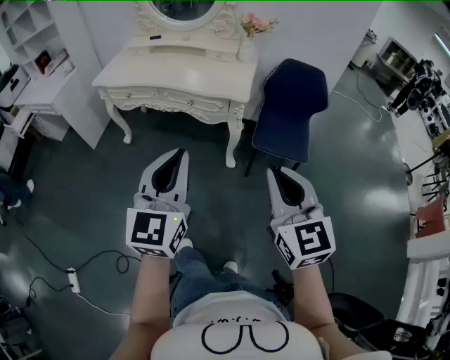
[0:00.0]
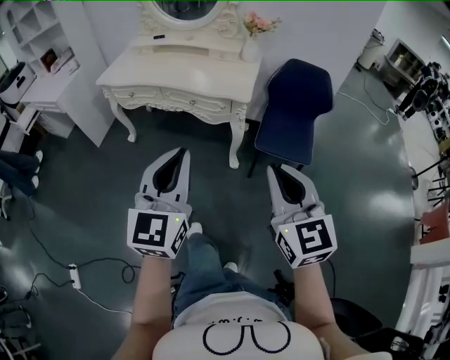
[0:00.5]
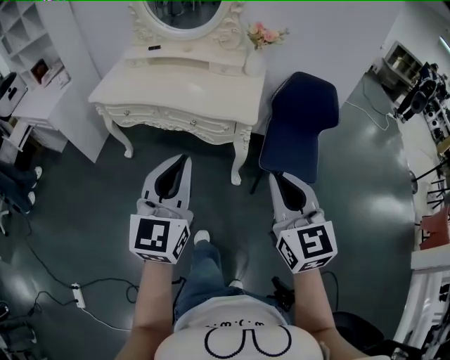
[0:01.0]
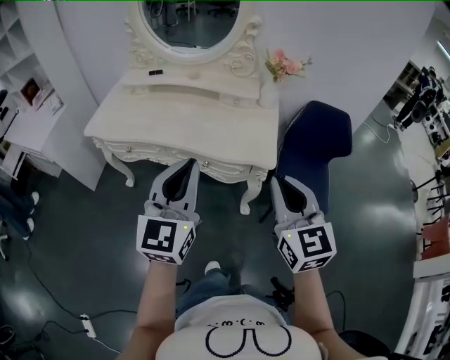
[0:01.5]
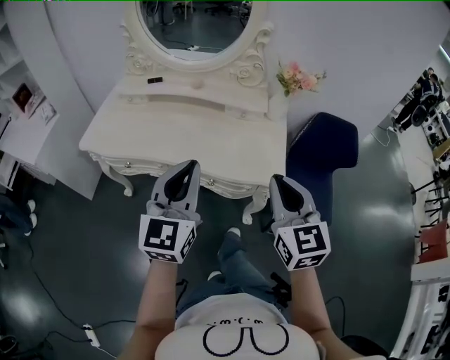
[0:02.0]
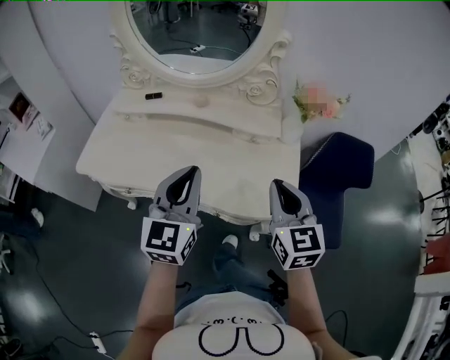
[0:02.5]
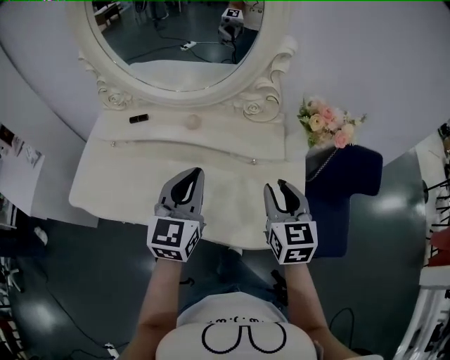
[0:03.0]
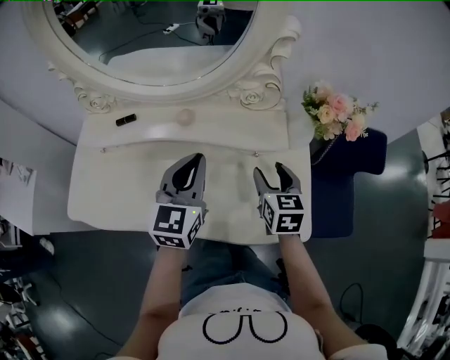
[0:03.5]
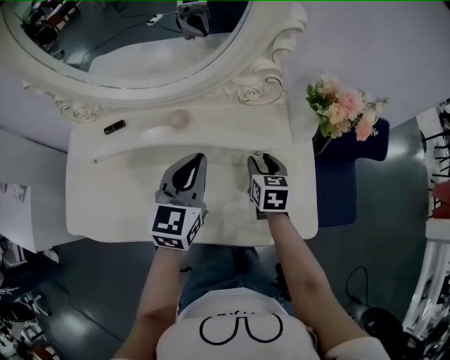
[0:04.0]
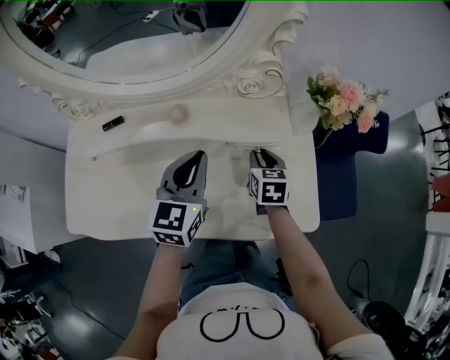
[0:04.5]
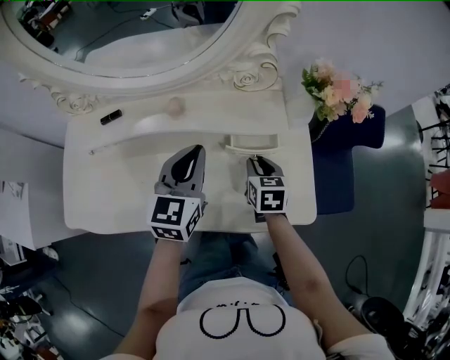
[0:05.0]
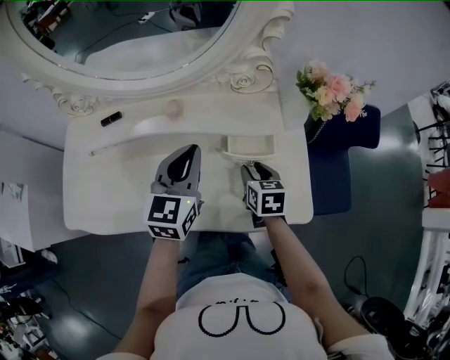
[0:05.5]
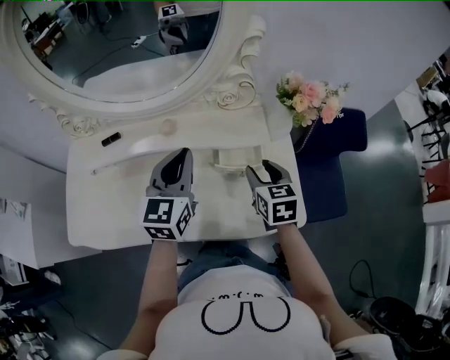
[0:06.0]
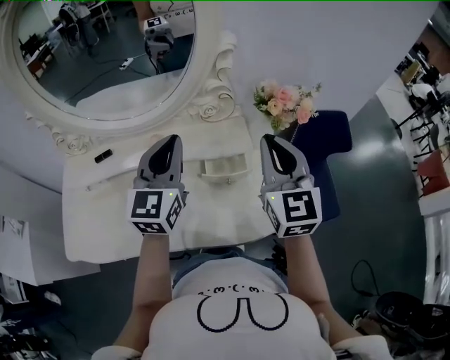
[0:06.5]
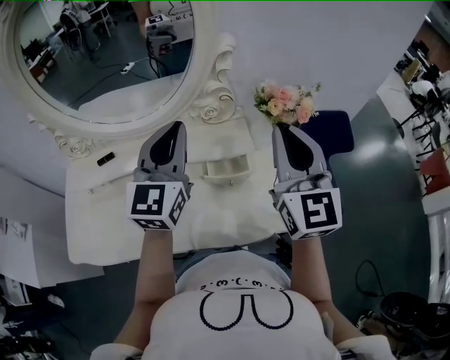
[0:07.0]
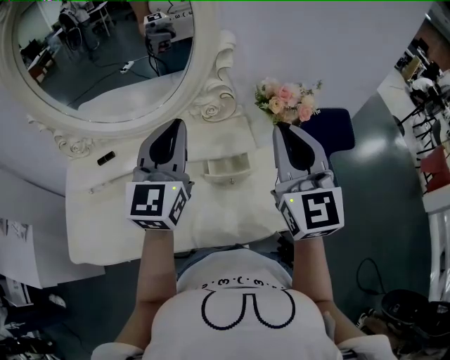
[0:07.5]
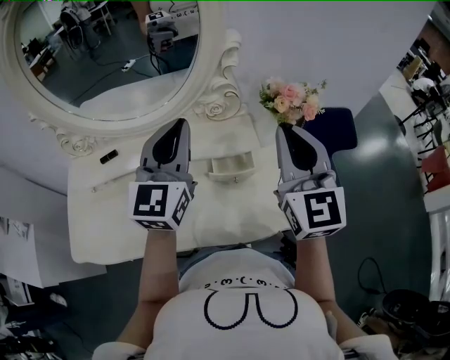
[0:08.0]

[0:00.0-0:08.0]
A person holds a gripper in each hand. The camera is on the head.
0:00.0 to 0:02.0: The two grippers travel together, forward, roughly 40 cm.
0:02.0 to 0:04.0: The right gripper moves forward and downward, some 50 cm, changes its angle by approximately 40 degrees, and opens; the left gripper heads forward, covering roughly 40 cm, and swivels approximately 20 degrees.
0:04.0 to 0:06.0: The right gripper moves upward and backward, about 10 cm.
0:06.0 to 0:08.0: The left gripper heads upward, covering roughly 15 cm. The right gripper shifts roughly 25 cm upward, points its fingers approximately 40 degrees further upward, and closes.

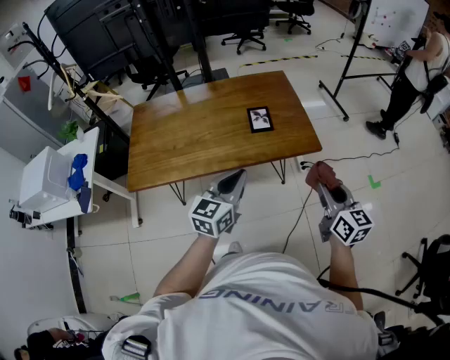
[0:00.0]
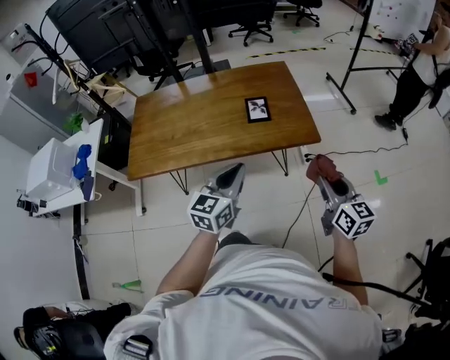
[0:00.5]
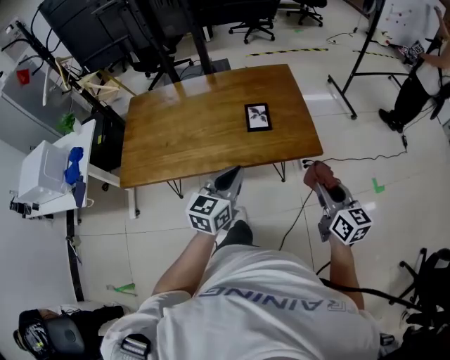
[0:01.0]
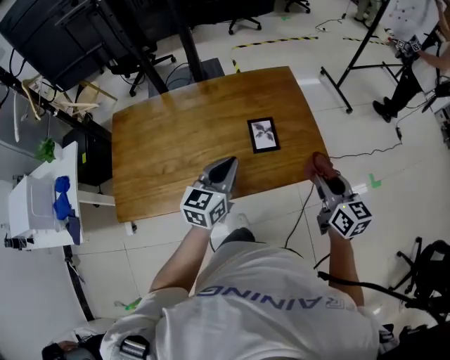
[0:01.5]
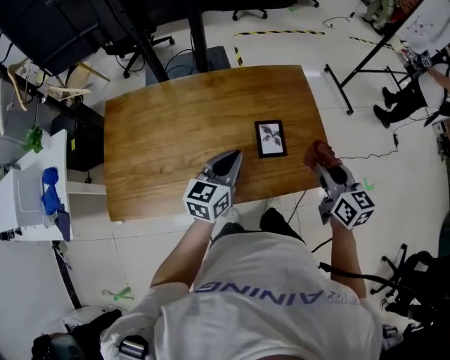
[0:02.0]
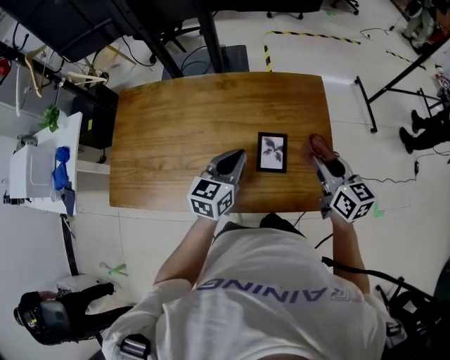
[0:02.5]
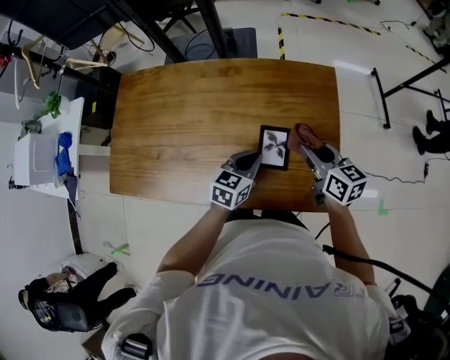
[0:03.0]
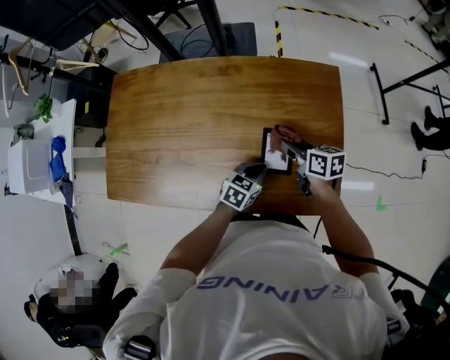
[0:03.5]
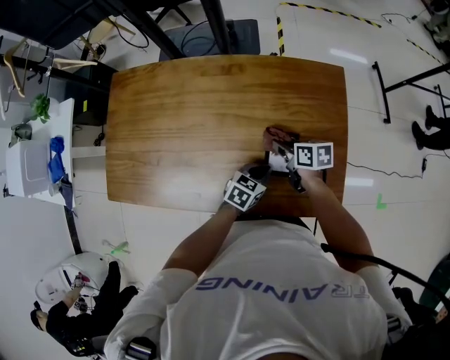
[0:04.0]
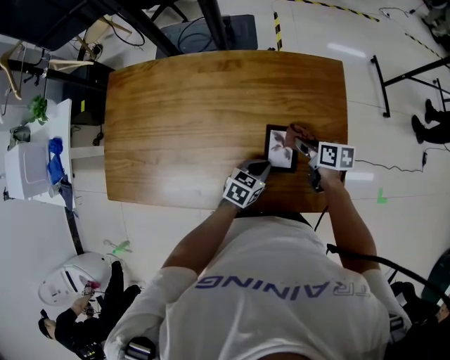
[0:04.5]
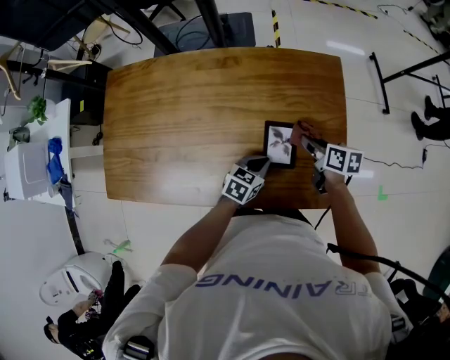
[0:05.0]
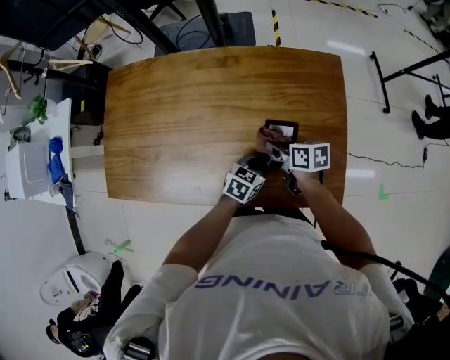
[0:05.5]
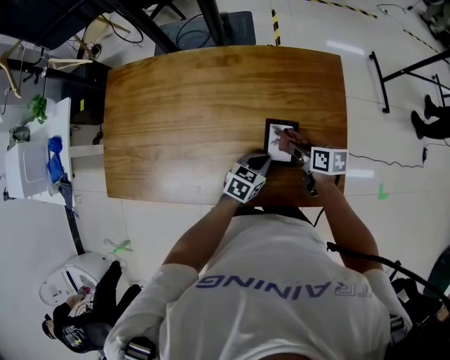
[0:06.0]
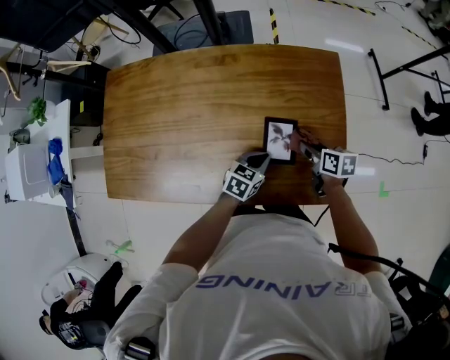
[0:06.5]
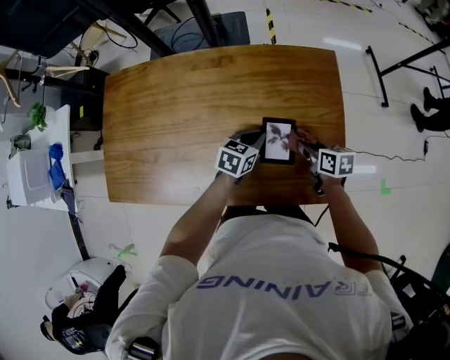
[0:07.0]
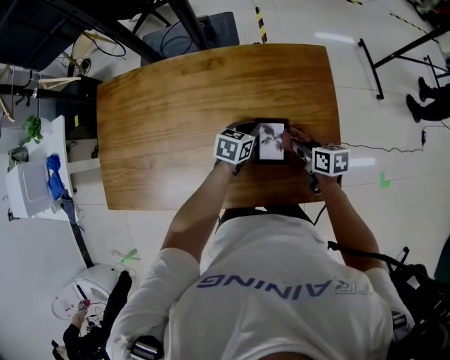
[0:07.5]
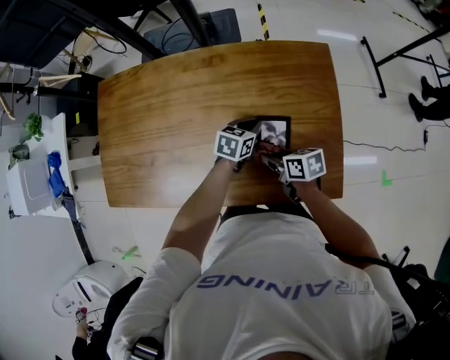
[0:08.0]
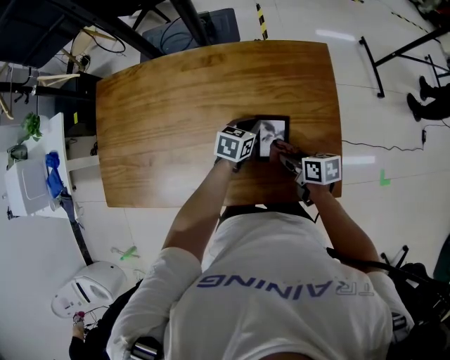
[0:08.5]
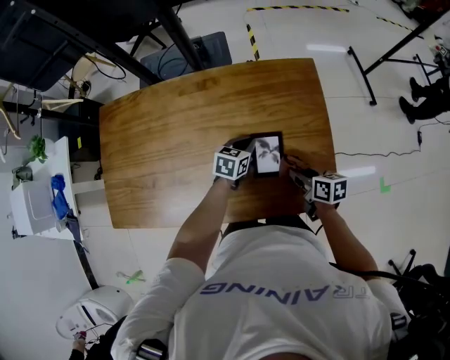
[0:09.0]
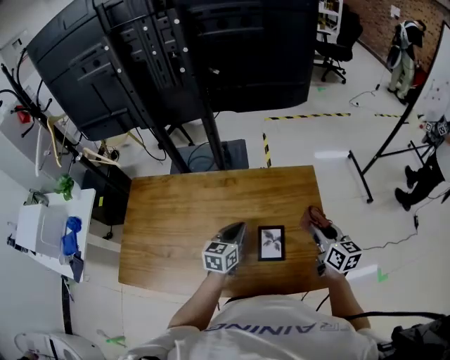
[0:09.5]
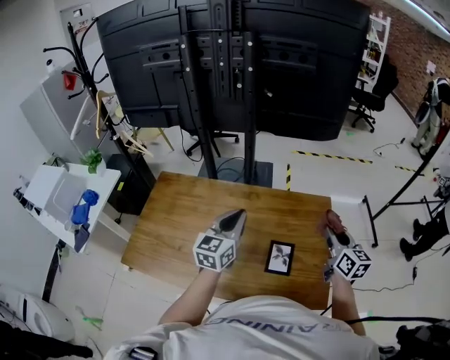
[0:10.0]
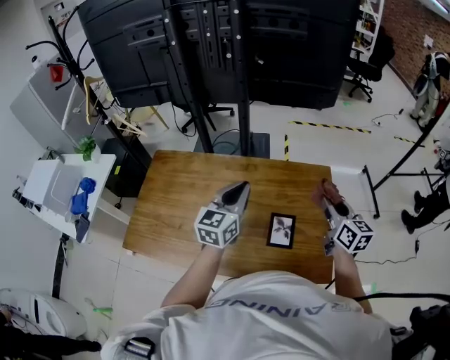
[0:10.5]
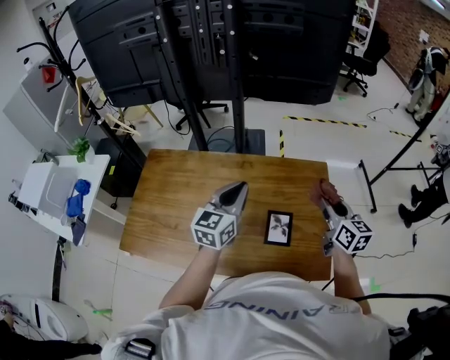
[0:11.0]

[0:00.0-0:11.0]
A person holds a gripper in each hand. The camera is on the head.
0:00.0 to 0:02.0: Both grippers travel together forward, approximately 25 cm.
0:02.0 to 0:03.5: The left gripper is displaced downward and to the right by roughly 20 cm, and changes its angle by roughly 30 degrees, while the right gripper shifts roughly 25 cm forward and downward, and changes its angle by about 40 degrees.
0:03.5 to 0:05.5: The right gripper goes some 5 cm to the left.
0:05.5 to 0:07.5: The right gripper moves to the right, some 10 cm. Meanwhile the left gripper moves forward, some 10 cm.
0:07.5 to 0:09.0: The right gripper heads backward, covering roughly 5 cm, and goes to the left and returns, about 10 cm each way.
0:09.0 to 0:11.0: The left gripper moves upward, roughly 30 cm, and tilts its fingers approximately 30 degrees upward, while the right gripper heads upward and forward, covering approximately 25 cm, and turns by approximately 40 degrees.

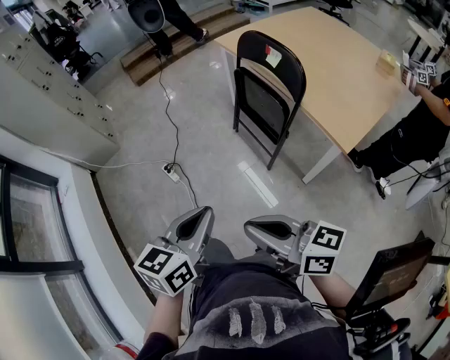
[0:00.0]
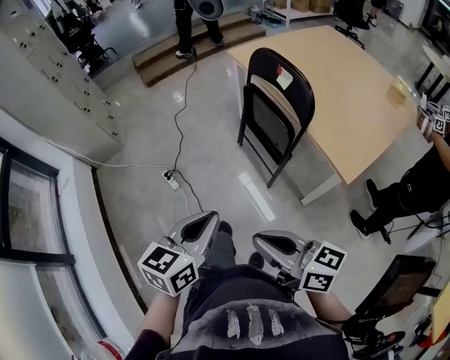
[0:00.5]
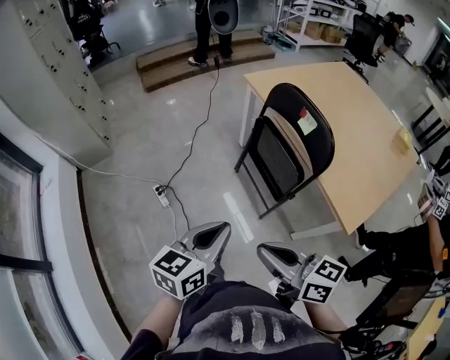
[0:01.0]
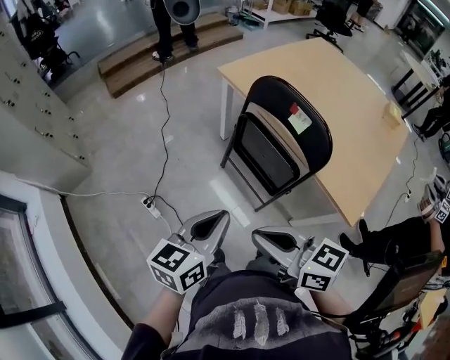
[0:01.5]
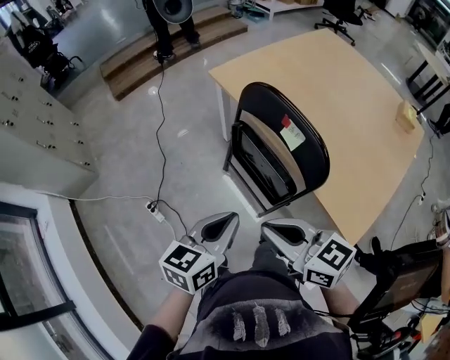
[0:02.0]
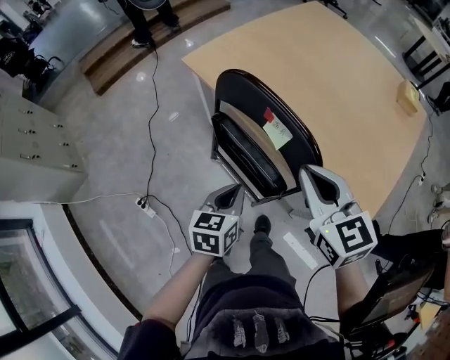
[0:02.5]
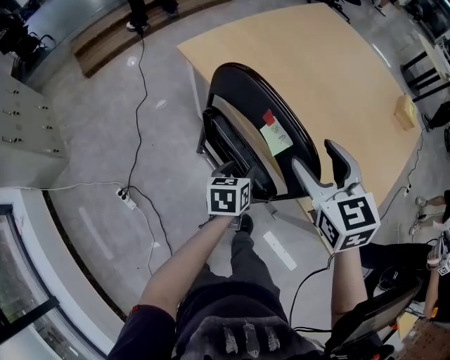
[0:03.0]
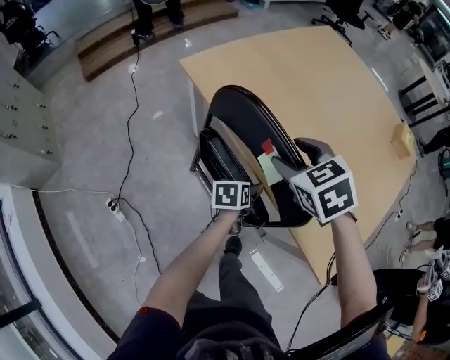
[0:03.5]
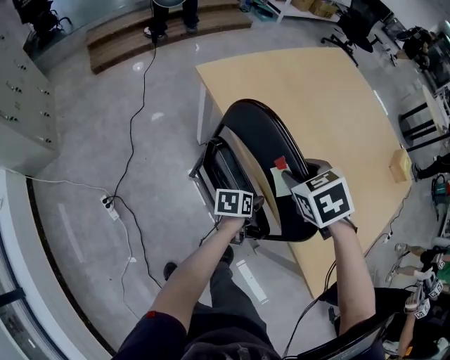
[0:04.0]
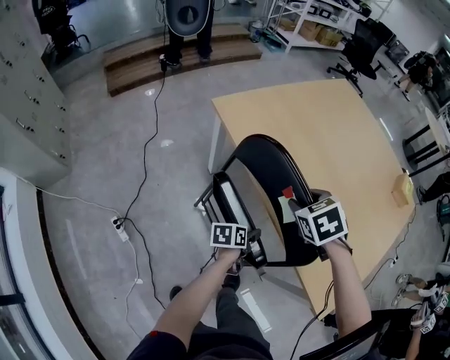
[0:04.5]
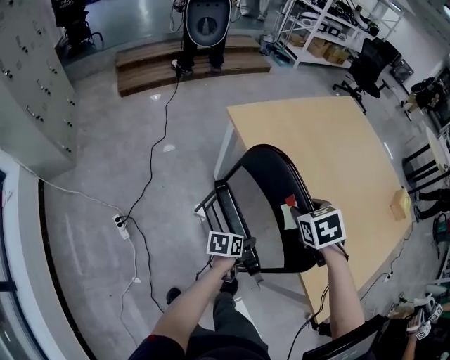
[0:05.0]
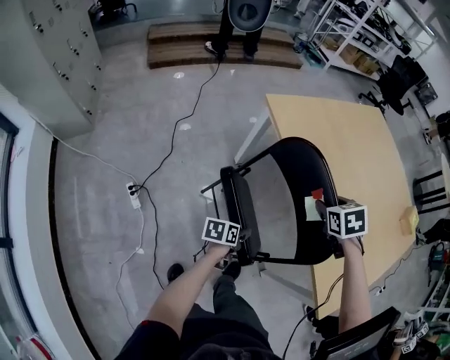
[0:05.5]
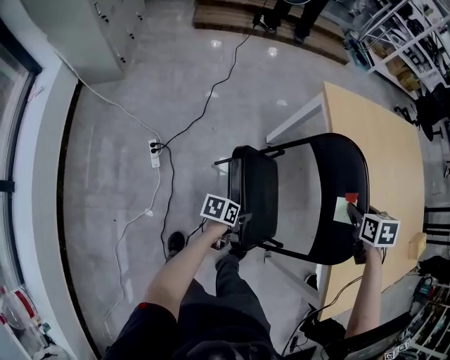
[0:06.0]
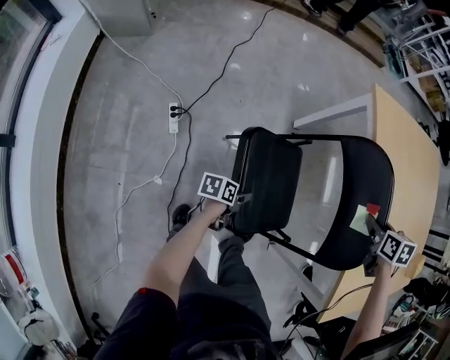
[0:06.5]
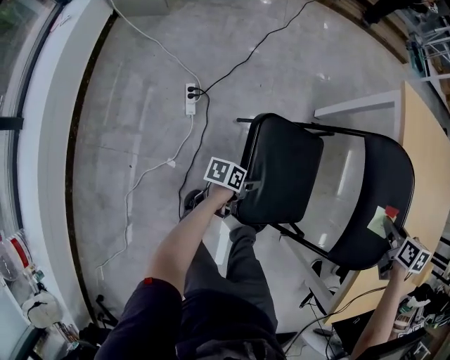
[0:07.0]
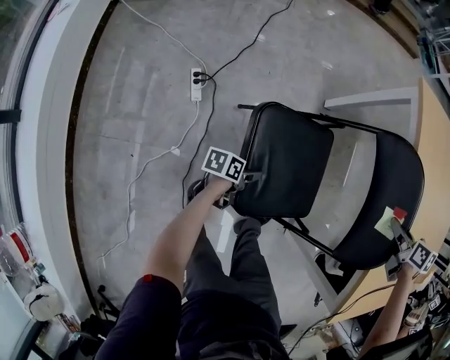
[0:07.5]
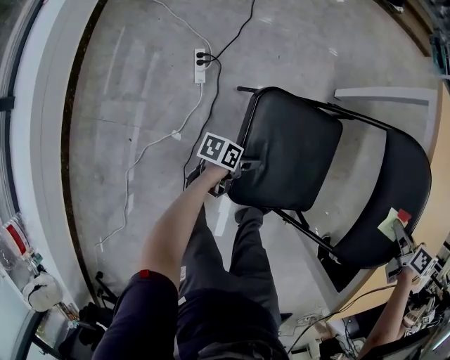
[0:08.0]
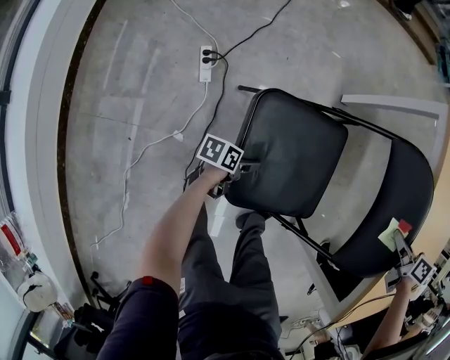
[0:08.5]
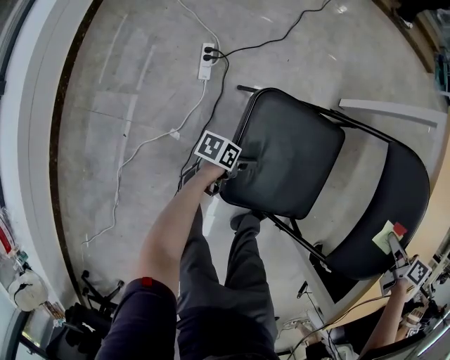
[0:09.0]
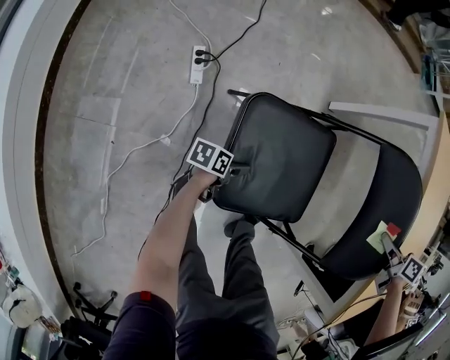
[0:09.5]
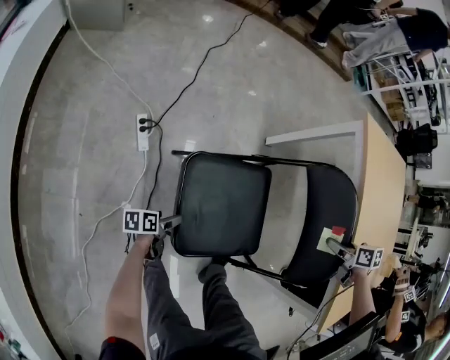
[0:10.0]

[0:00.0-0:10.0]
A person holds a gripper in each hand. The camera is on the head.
0:00.0 to 0:02.0: Both grippers travel together forward, some 35 cm. The right gripper changes its angle by about 20 degrees.
0:02.0 to 0:04.0: The right gripper ends up roughly 35 cm from where it was, tilts its fingers some 40 degrees downward, and opens its fingers. The left gripper travels downward by some 30 cm, rotates approximately 40 degrees, and opens up.
0:04.0 to 0:06.0: The right gripper shifts about 5 cm downward. The left gripper heads backward and to the left, covering approximately 25 cm.
0:06.0 to 0:08.0: The right gripper goes about 10 cm downward, and rotates roughly 20 degrees. Meanwhile the left gripper shifts some 25 cm downward, to the left and backward.
0:08.0 to 0:10.0: The right gripper goes about 10 cm to the left, and opens up. The left gripper goes some 15 cm to the left, backward and downward.
